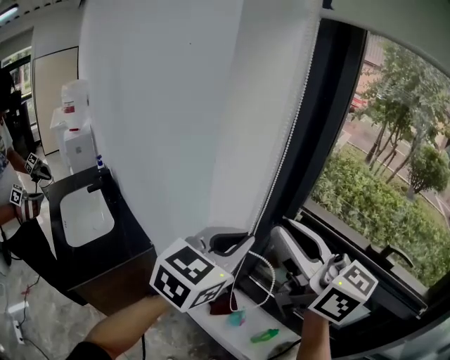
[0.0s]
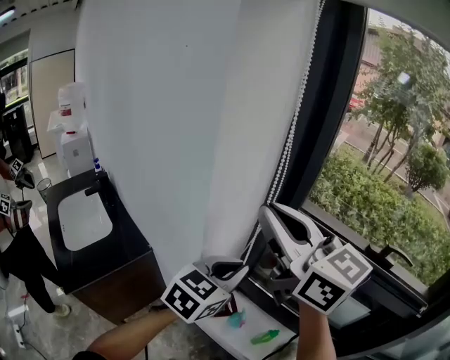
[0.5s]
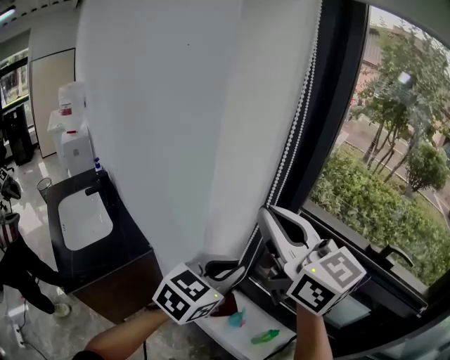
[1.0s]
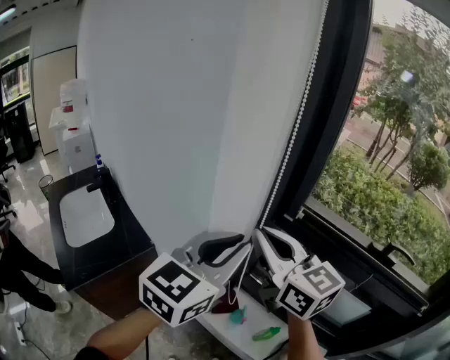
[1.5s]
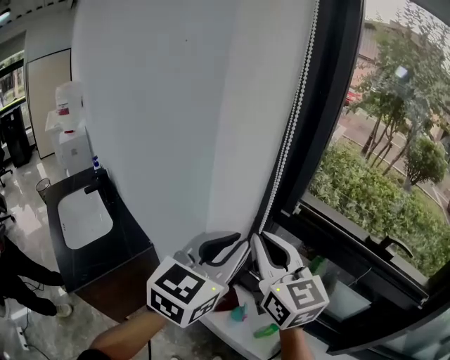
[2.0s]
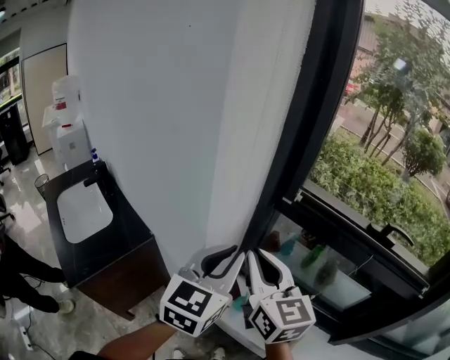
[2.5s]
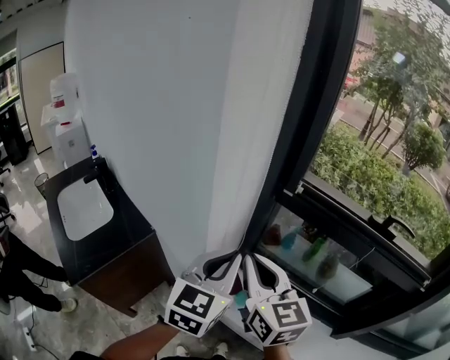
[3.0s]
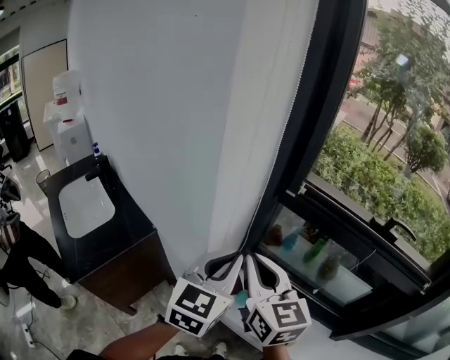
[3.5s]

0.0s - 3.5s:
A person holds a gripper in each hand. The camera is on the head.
0.0s - 2.0s: The left gripper goes downward and returns, roughly 10 cm each way. The right gripper travels downward by approximately 10 cm, and rotates about 20 degrees.
2.0s - 3.5s: The right gripper travels downward and backward by some 10 cm, while the left gripper travels downward by some 10 cm.

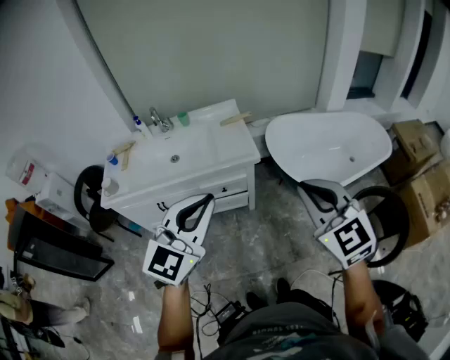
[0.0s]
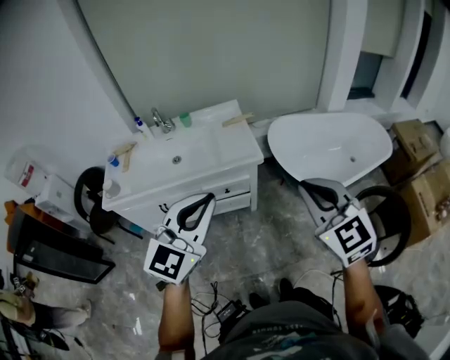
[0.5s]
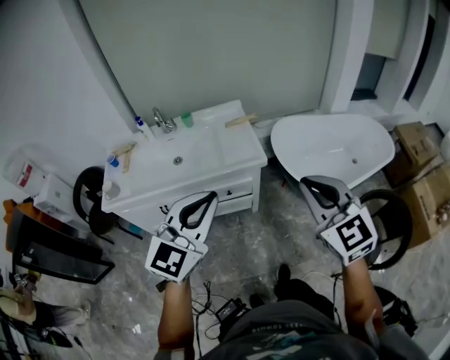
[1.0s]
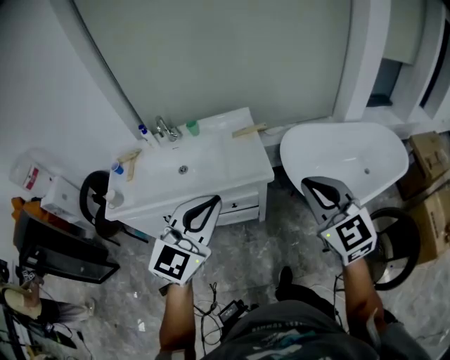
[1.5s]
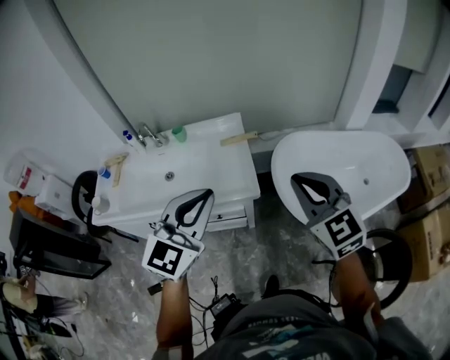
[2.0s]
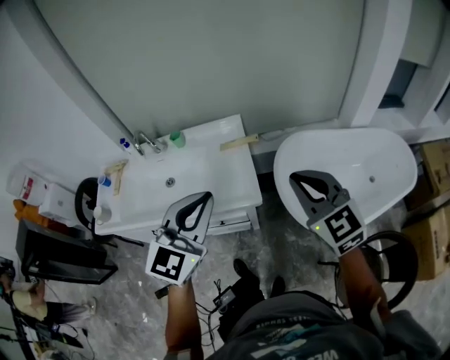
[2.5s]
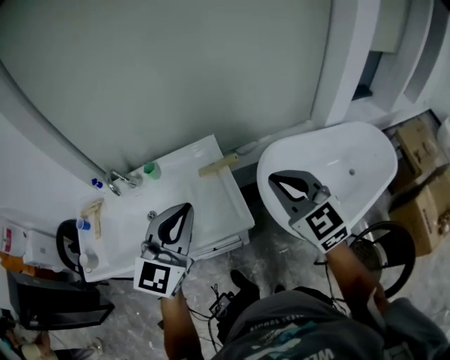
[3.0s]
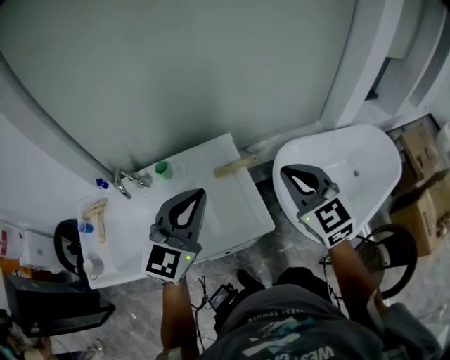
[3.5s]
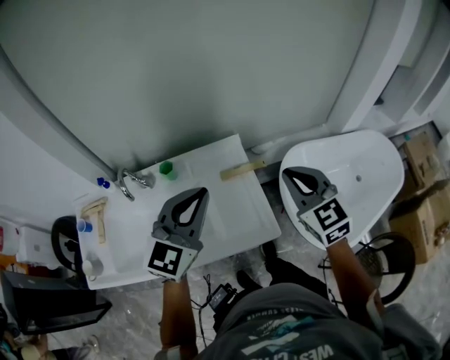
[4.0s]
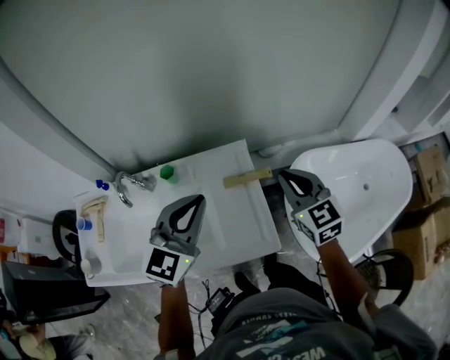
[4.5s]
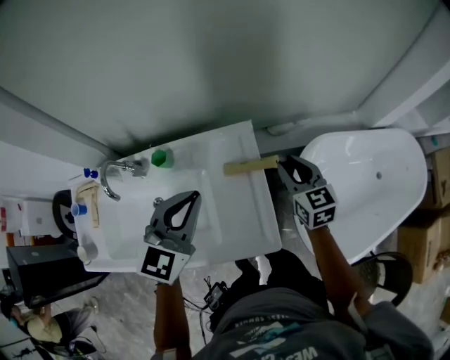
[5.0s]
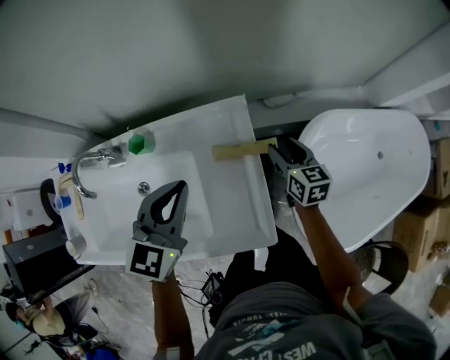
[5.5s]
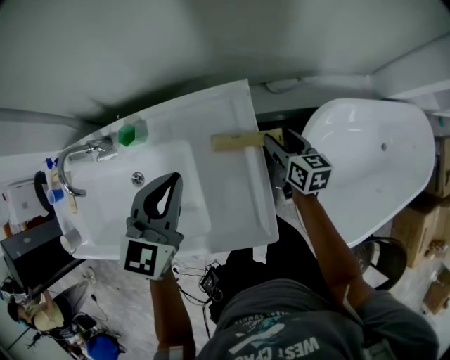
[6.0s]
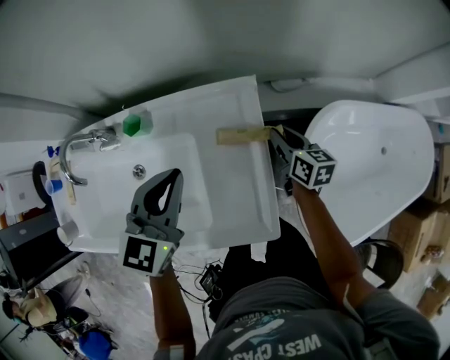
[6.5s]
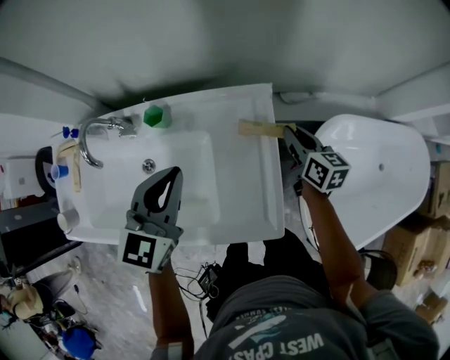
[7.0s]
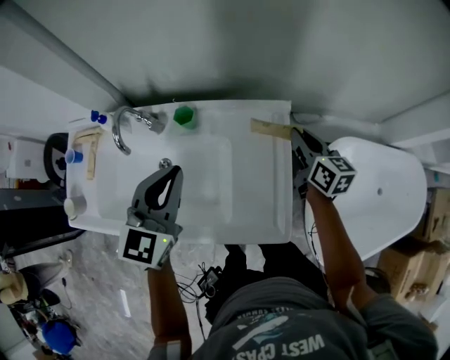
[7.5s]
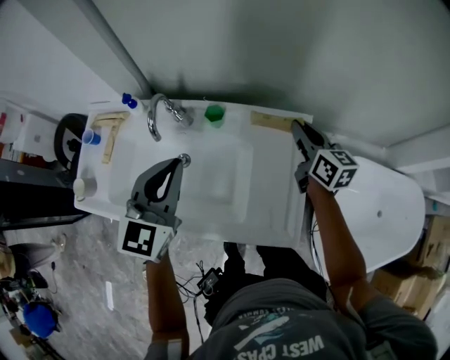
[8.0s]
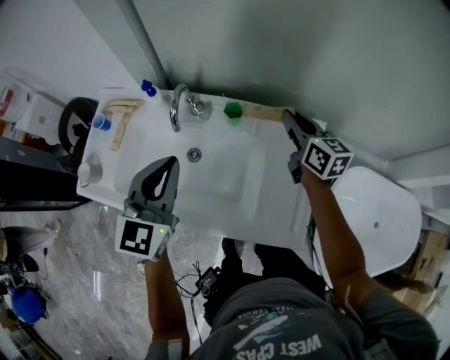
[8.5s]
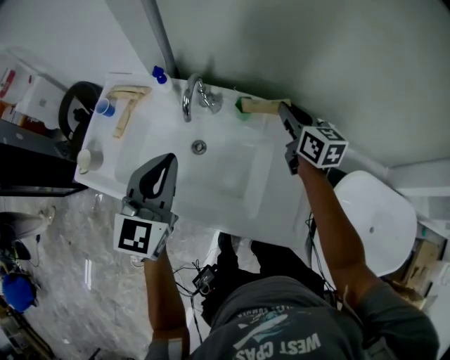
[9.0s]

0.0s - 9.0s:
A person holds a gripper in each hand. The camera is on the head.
0.0s - 2.0s: The two grippers go about 25 cm forward.
2.0s - 4.5s: The left gripper is displaced forward and to the left by roughly 30 cm. Meanwhile the right gripper travels forward by approximately 30 cm.
4.5s - 7.0s: The left gripper heads downward, forward and to the left, covering about 15 cm, and changes its angle by roughly 20 degrees; the right gripper shifts roughly 25 cm downward and forward, rotates some 40 degrees, and opens, then closes once more.
7.0s - 9.0s: The left gripper moves to the left, about 20 cm, and swivels about 20 degrees. The right gripper moves to the left and upward, approximately 30 cm, and turns by roughly 30 degrees.

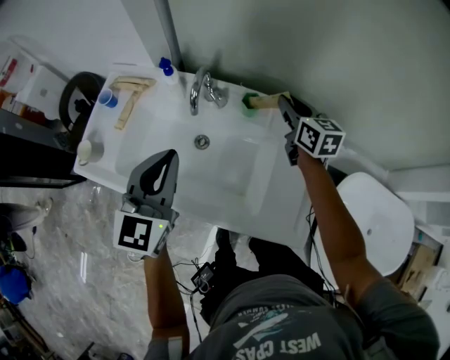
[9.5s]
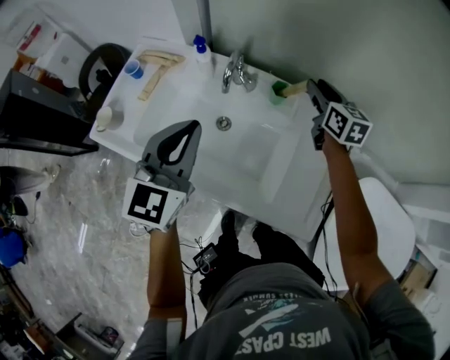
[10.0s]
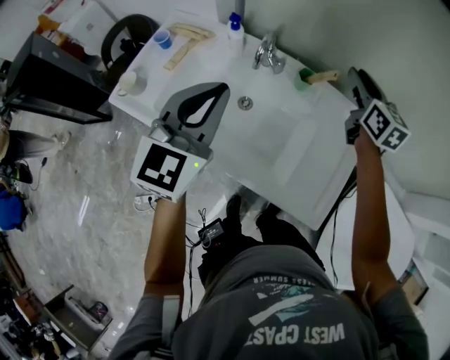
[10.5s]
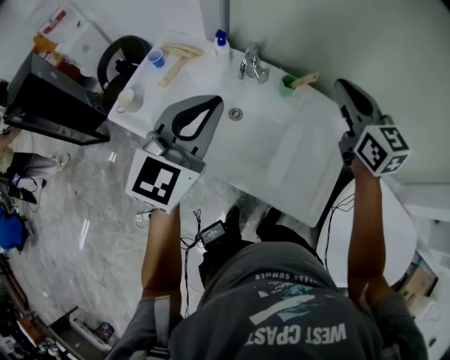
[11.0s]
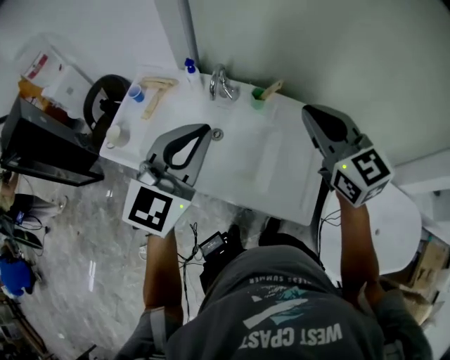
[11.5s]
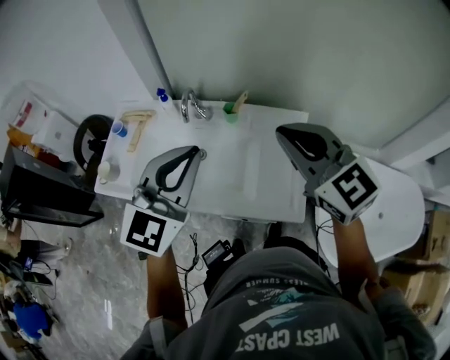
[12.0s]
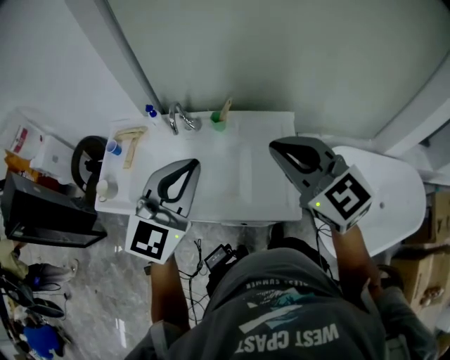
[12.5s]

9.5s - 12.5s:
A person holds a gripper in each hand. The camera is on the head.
9.5s - 11.0s: The right gripper shifts about 20 cm upward and backward, and rotates about 20 degrees; the left gripper travels upward and backward by roughly 10 cm.
11.0s - 12.5s: The left gripper moves to the right and backward, approximately 15 cm, and swivels some 20 degrees. Meanwhile the right gripper goes roughly 20 cm backward.

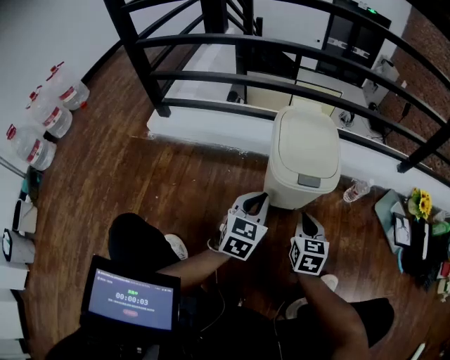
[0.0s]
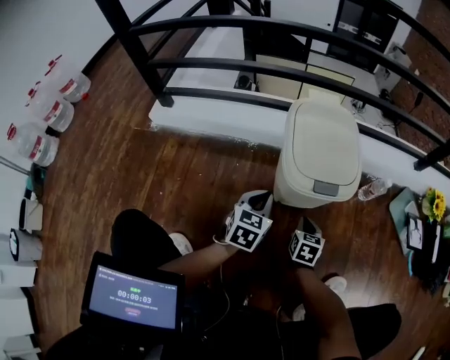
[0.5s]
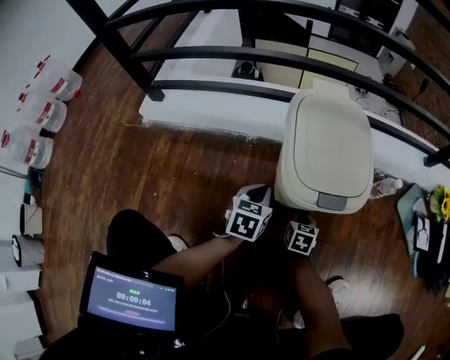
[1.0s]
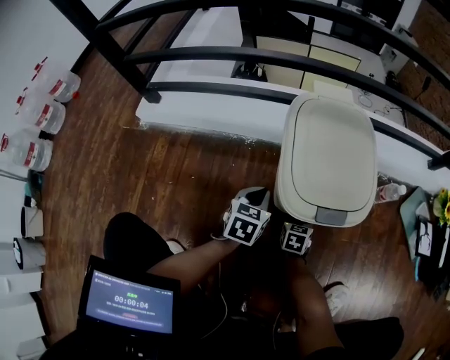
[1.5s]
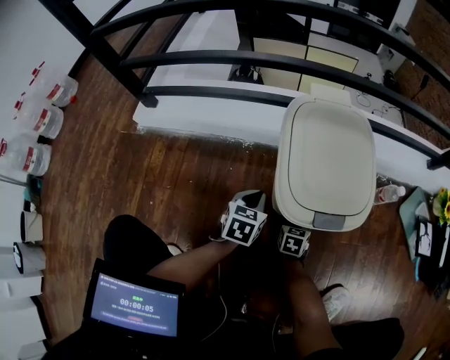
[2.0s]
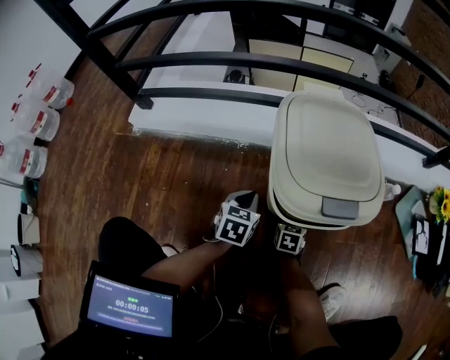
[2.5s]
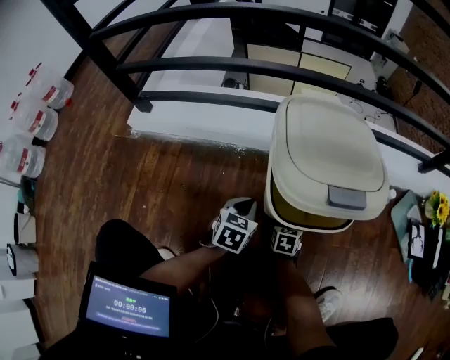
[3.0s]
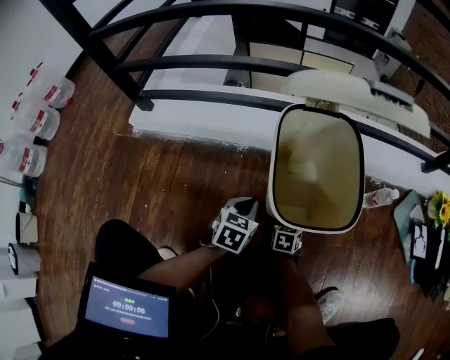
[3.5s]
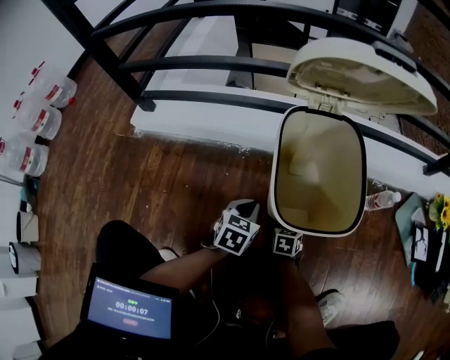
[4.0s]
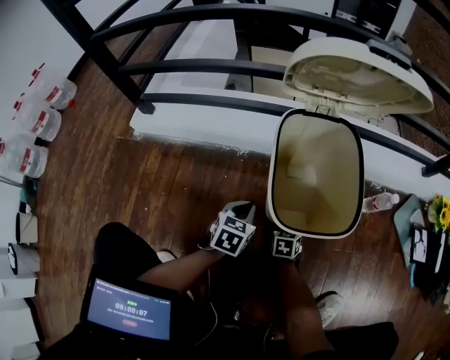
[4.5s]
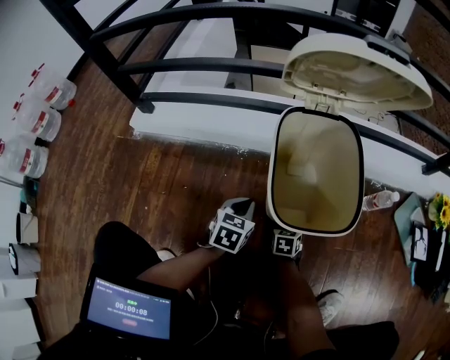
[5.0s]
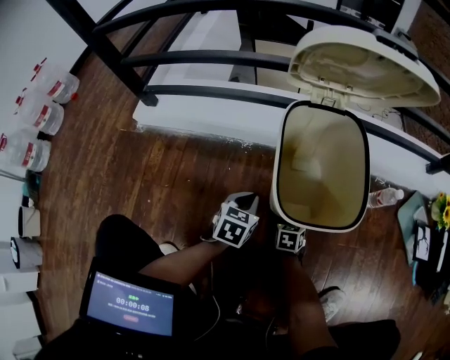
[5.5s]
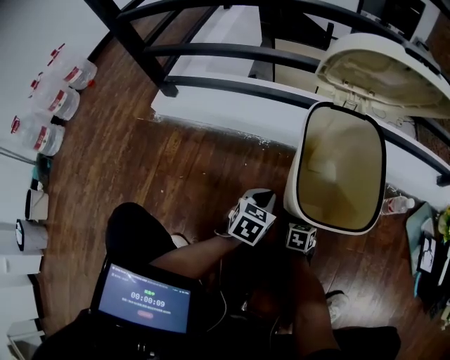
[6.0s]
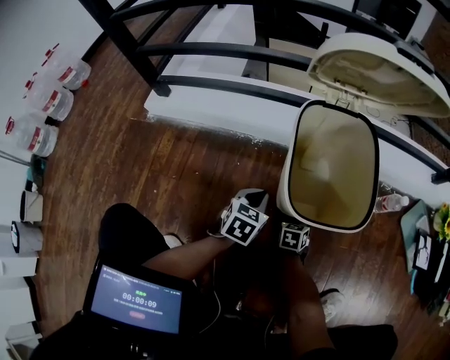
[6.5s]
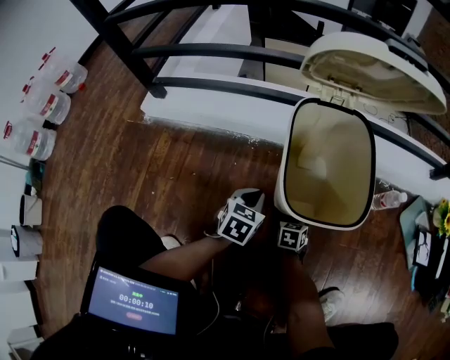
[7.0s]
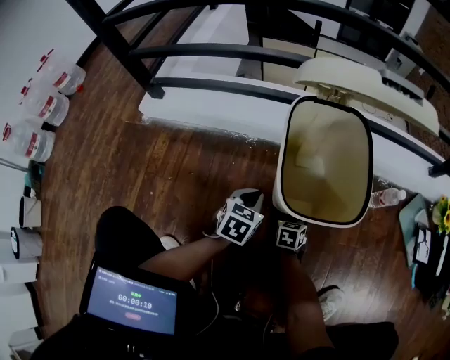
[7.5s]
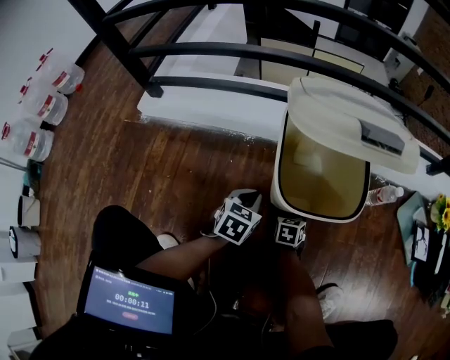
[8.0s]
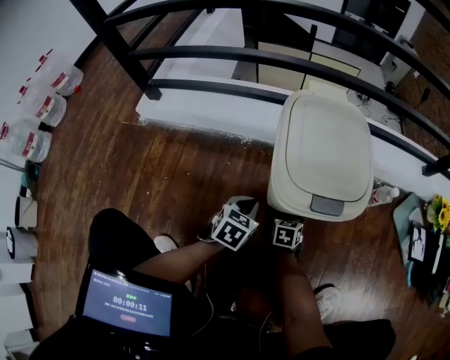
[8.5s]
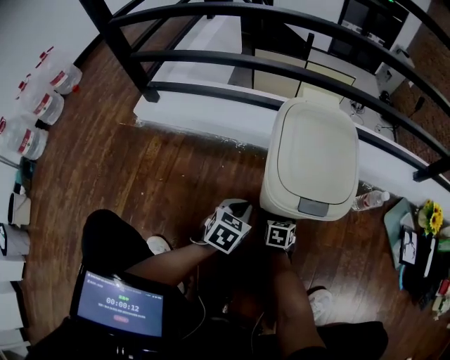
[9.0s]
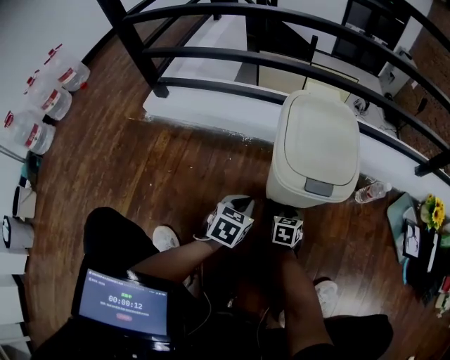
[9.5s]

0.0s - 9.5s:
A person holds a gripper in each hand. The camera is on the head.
0.0s - 2.0s: The left gripper travels downward and forward by approximately 20 cm, and turns by about 20 degrees; the right gripper moves downward, approximately 25 cm, and turns by about 20 degrees.
2.0s - 4.0s: The grippers stay close to where they were, moving slightly.
4.0s - 7.5s: The two grippers keep their place.
7.5s - 9.5s: The right gripper shifts approximately 5 cm upward. The left gripper shifts some 5 cm backward.

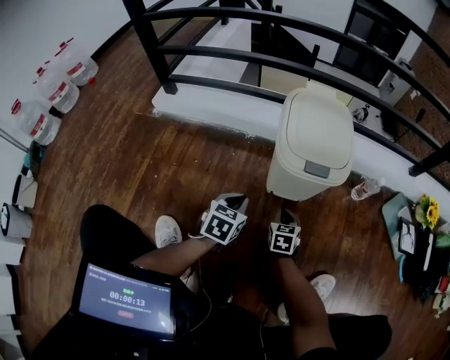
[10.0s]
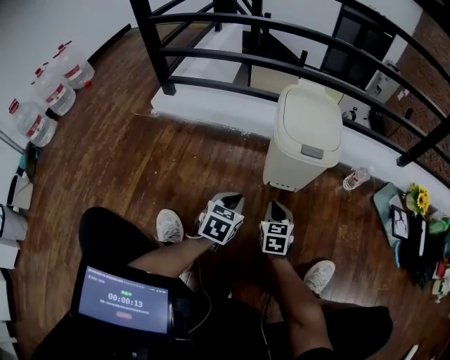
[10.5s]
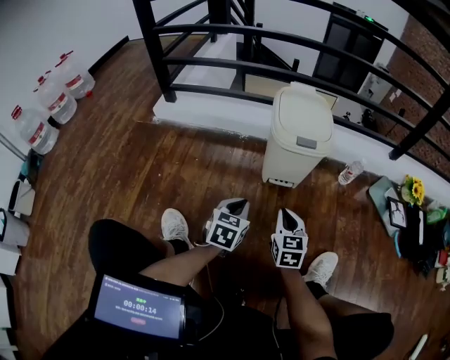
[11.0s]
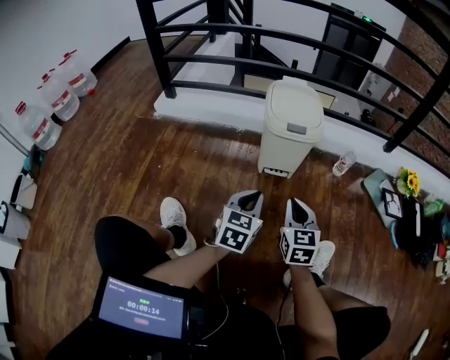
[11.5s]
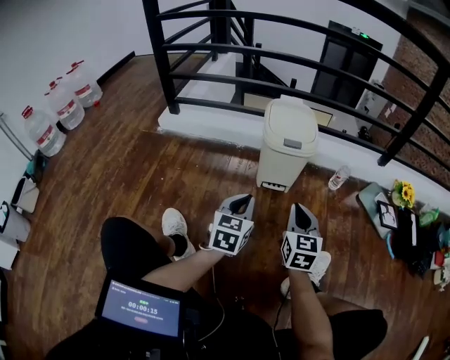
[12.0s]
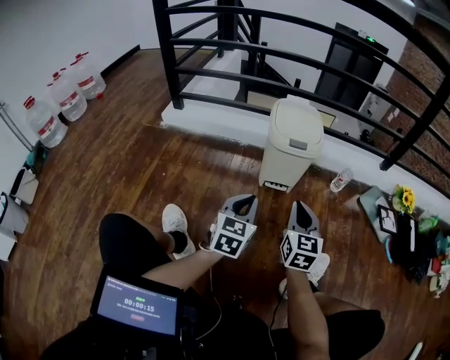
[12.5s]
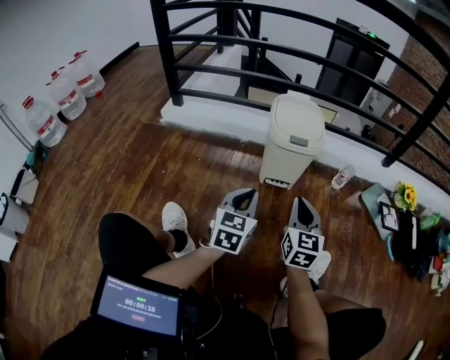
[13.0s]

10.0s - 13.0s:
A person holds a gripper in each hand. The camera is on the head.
10.0s - 11.5s: The right gripper goes about 30 cm upward and backward, and swivels roughly 20 degrees. Meanwhile the left gripper shifts approximately 20 cm backward, upward and to the right.
11.5s - 13.0s: The left gripper ends up about 5 cm from where it was, while the right gripper shifts some 5 cm upward.
